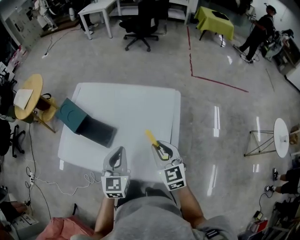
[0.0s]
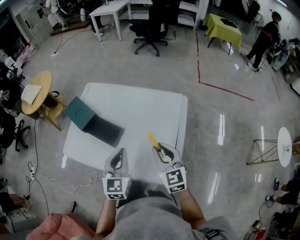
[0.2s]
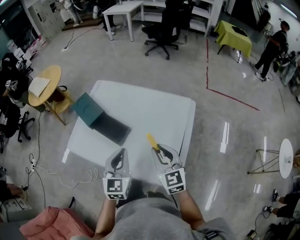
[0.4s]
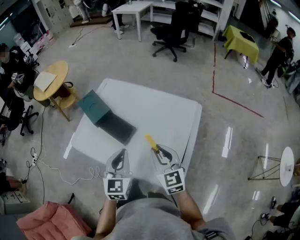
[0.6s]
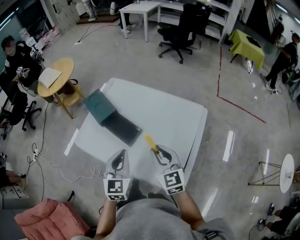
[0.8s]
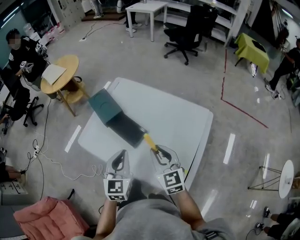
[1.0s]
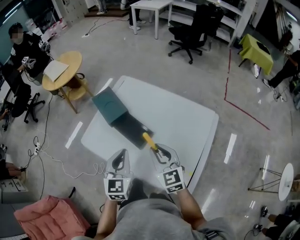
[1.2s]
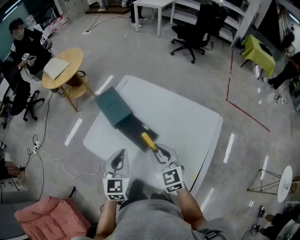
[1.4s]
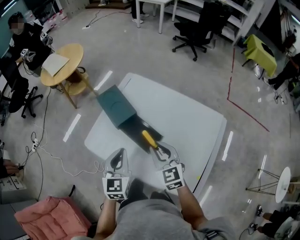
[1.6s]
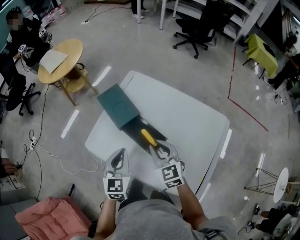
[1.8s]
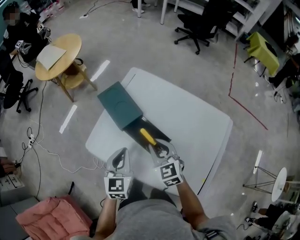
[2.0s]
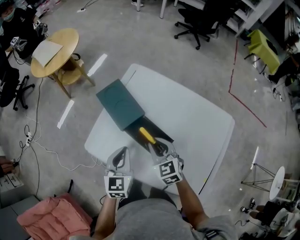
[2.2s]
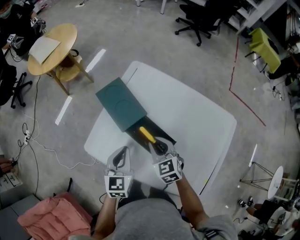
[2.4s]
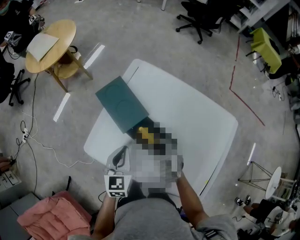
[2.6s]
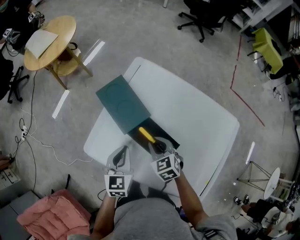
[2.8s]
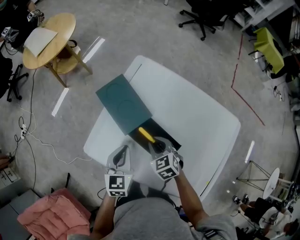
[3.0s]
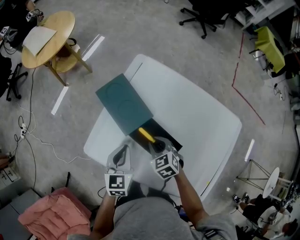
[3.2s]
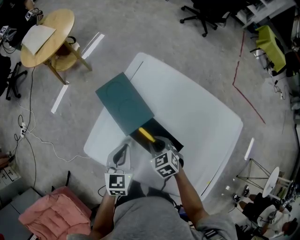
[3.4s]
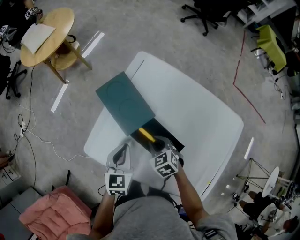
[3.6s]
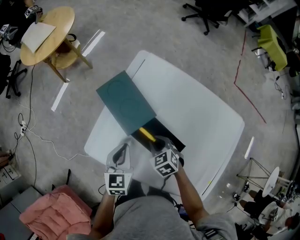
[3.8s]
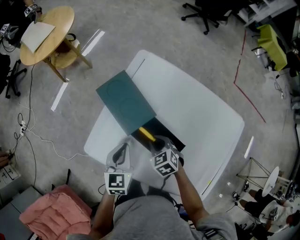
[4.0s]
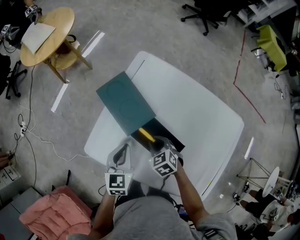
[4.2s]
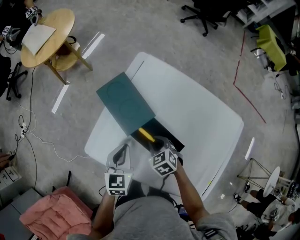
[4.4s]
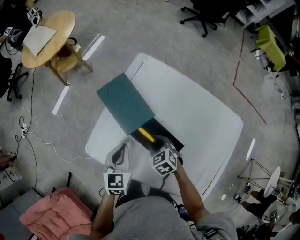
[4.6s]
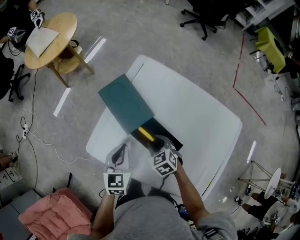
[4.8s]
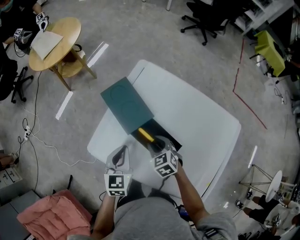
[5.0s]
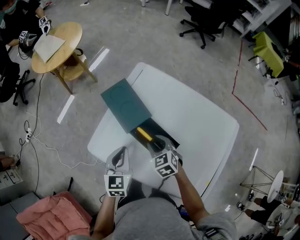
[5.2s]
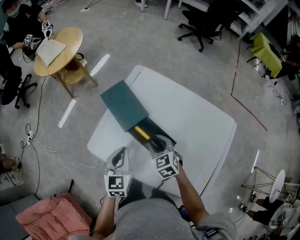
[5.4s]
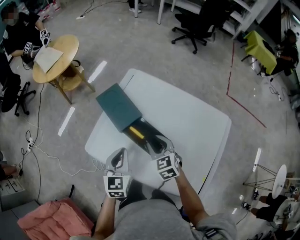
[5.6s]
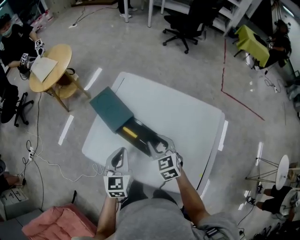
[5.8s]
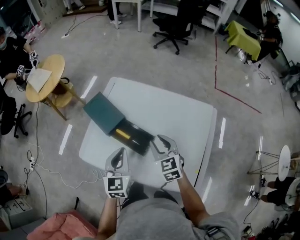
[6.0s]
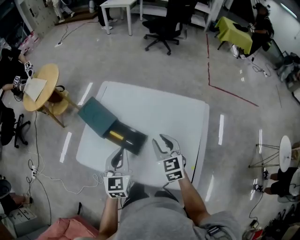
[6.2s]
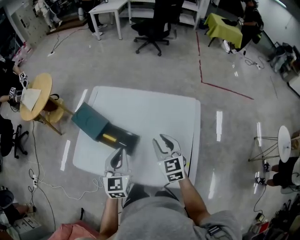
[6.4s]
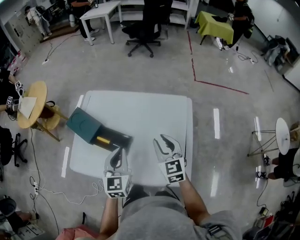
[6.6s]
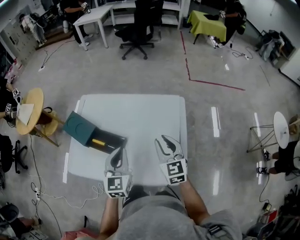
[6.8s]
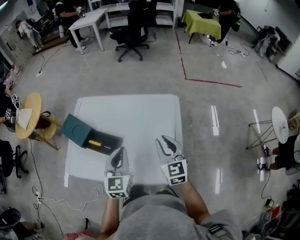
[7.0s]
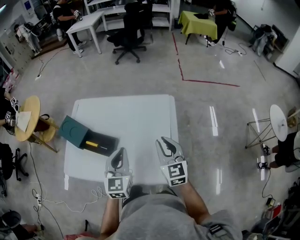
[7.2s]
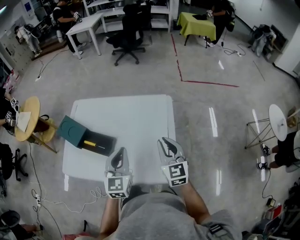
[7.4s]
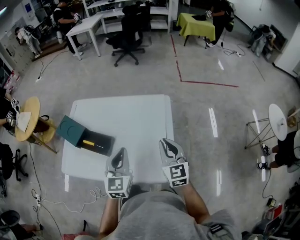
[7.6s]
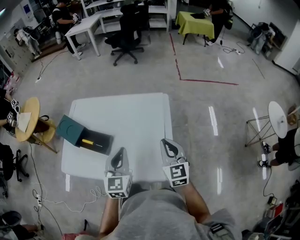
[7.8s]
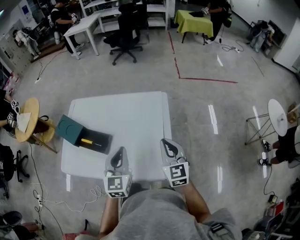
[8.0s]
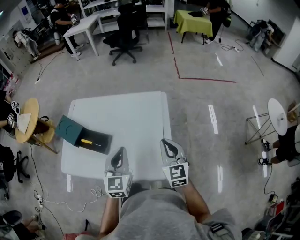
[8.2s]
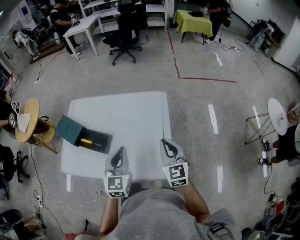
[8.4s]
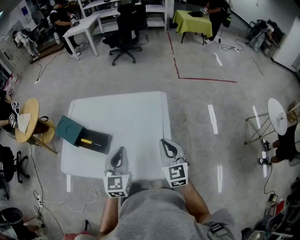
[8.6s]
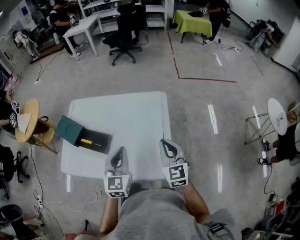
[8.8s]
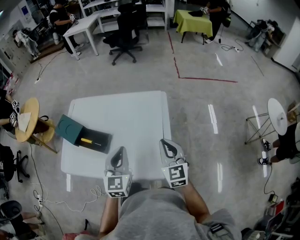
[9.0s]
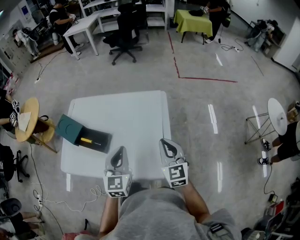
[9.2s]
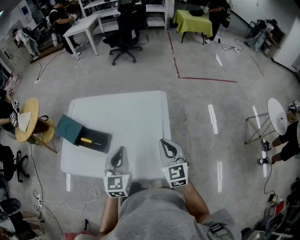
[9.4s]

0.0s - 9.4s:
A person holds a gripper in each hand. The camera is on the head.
0.0s - 1.6s: The right gripper shifts about 25 cm to the left and forward, and swivels approximately 20 degrees; the left gripper shifts some 25 cm to the left, and swivels roughly 20 degrees.
1.6s - 3.2s: The right gripper moves downward and forward, about 20 cm, and angles its fingers downward, by approximately 30 degrees, while the left gripper goes some 20 cm downward, forward and to the left.
3.2s - 4.8s: The grippers make only small movements.
4.8s - 6.2s: The right gripper shifts roughly 25 cm upward, to the right and backward, and changes its angle by roughly 40 degrees. The left gripper heads to the right, upward and backward, covering approximately 20 cm.
6.2s - 7.8s: The left gripper is displaced to the right by roughly 20 cm. Meanwhile the right gripper shifts about 25 cm to the right and backward, swivels roughly 20 degrees, and closes up.
7.8s - 9.4s: The grippers make only small movements.

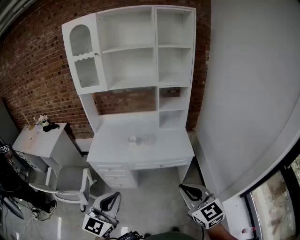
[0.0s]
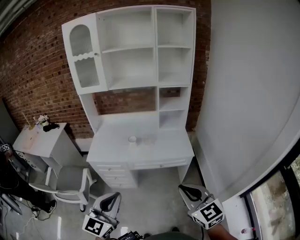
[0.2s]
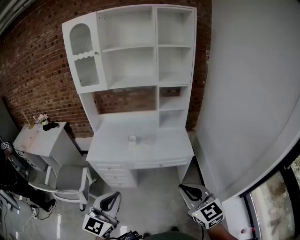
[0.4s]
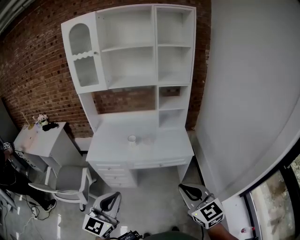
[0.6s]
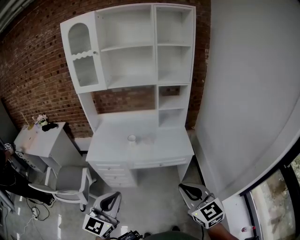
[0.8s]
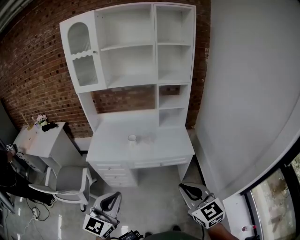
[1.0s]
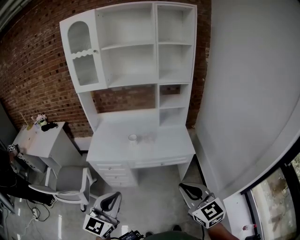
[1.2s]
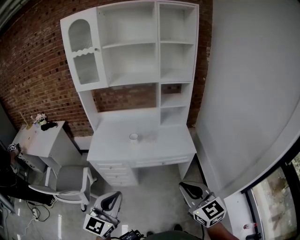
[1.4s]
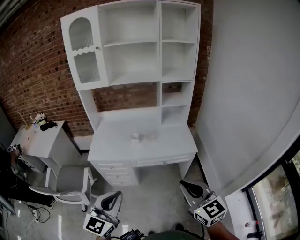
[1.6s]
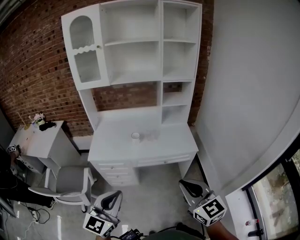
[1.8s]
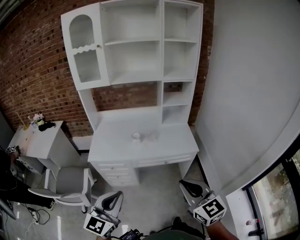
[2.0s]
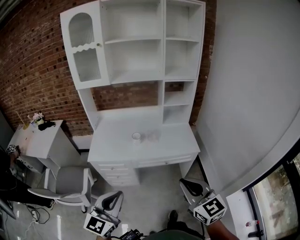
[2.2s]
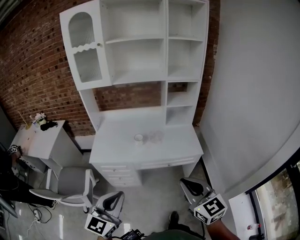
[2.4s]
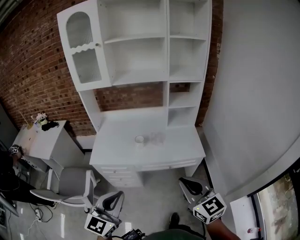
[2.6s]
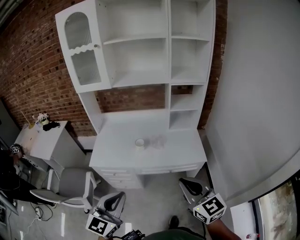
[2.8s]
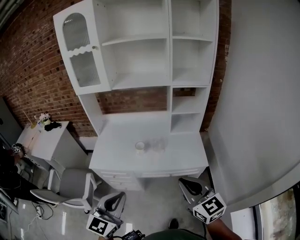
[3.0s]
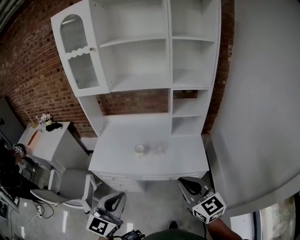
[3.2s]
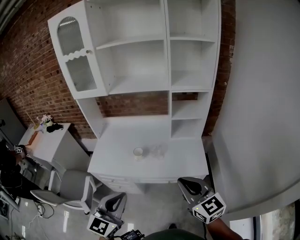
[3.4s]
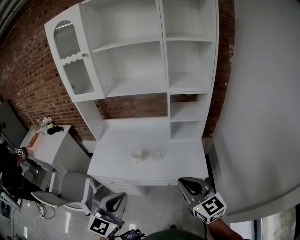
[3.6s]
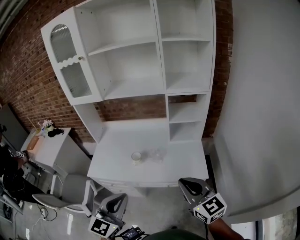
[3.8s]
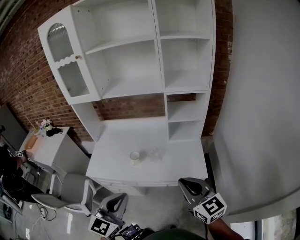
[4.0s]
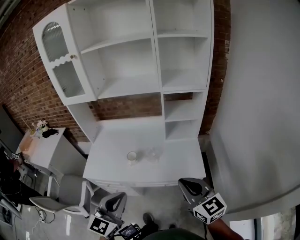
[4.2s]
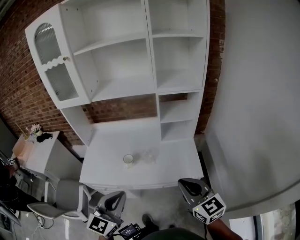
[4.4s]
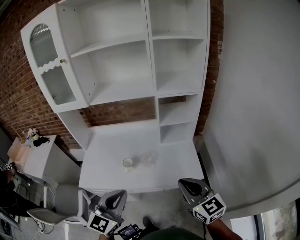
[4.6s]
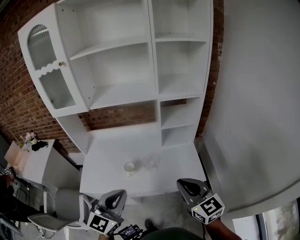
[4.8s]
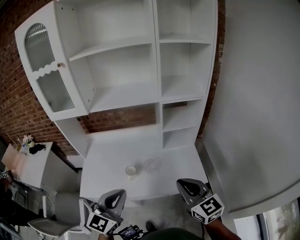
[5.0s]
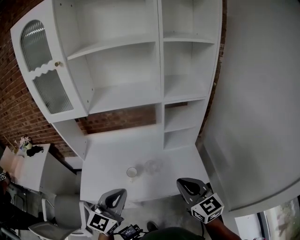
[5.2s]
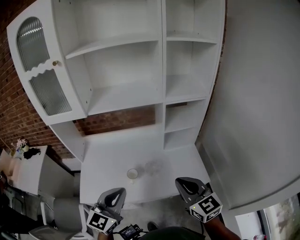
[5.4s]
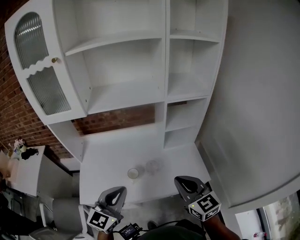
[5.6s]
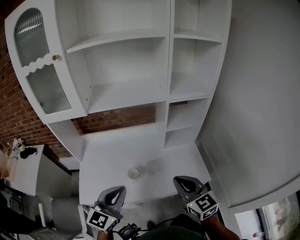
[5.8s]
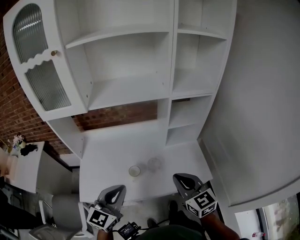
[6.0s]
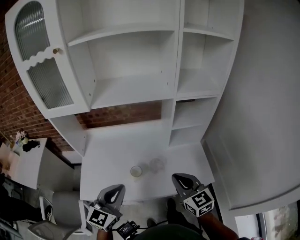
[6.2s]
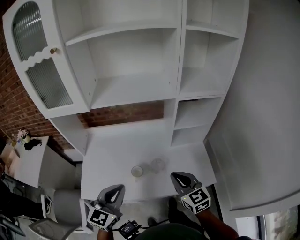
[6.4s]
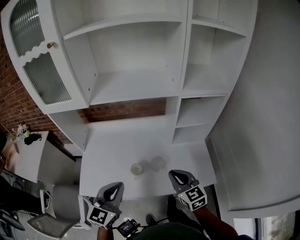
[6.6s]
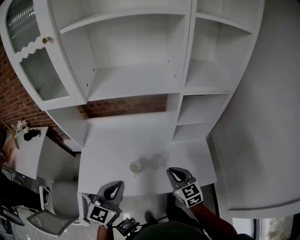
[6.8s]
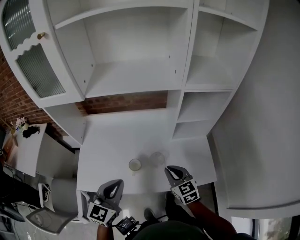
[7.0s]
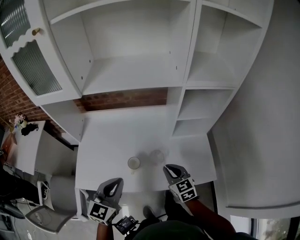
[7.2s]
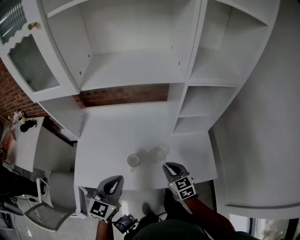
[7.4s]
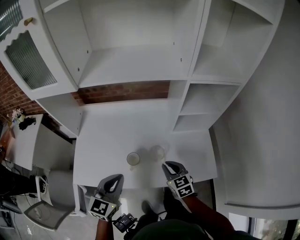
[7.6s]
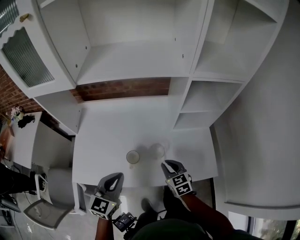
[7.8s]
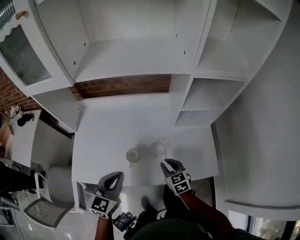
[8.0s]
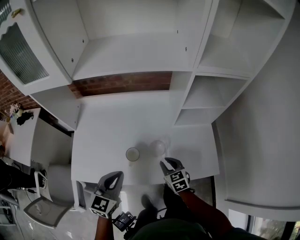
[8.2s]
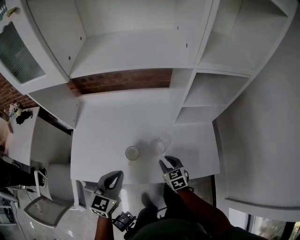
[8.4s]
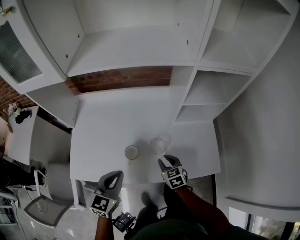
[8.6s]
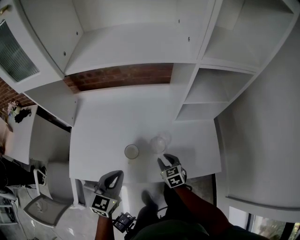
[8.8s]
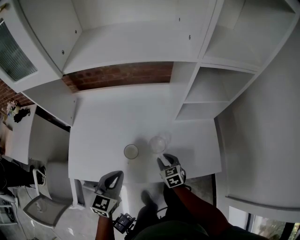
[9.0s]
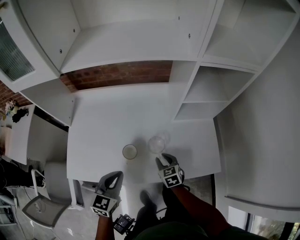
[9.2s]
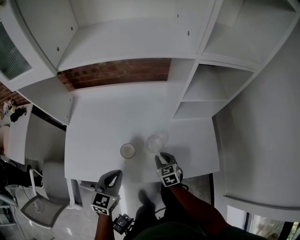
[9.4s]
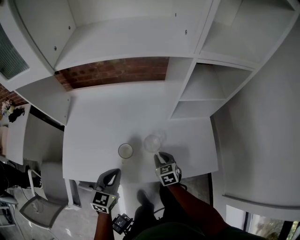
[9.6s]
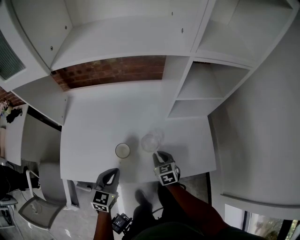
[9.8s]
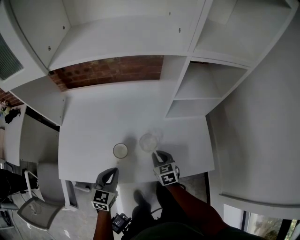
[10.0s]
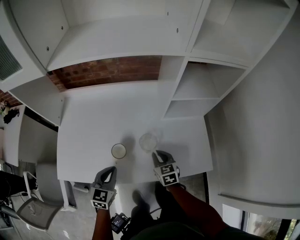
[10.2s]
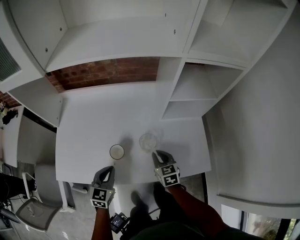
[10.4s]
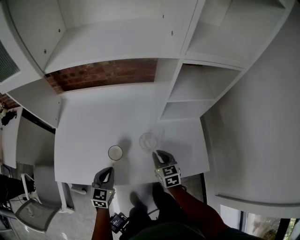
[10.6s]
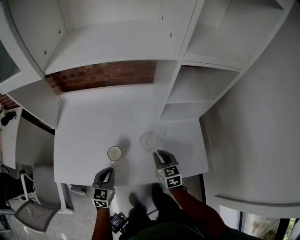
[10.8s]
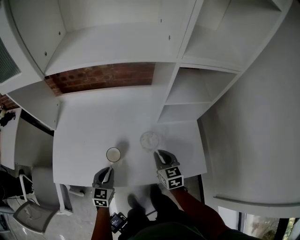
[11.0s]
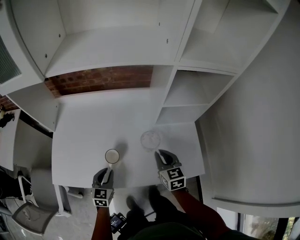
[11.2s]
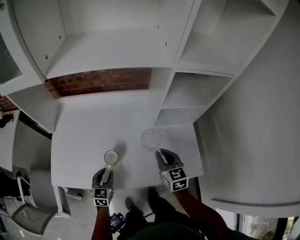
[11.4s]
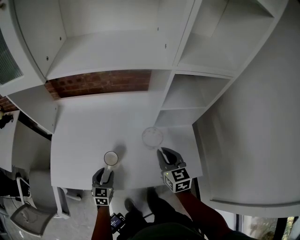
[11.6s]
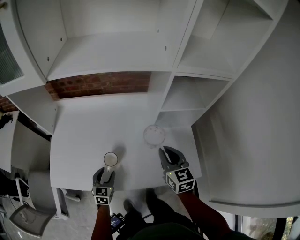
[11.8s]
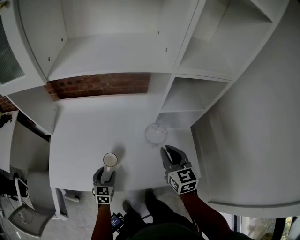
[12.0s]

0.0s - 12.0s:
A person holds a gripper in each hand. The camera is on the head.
0.0s - 1.6s: Both grippers travel together to the left, some 5 cm.
1.6s - 3.0s: The grippers both shift forward by approximately 15 cm.
3.0s - 4.4s: The two grippers go roughly 15 cm forward and to the right.
4.4s - 6.0s: The right gripper moves to the left and forward, roughly 20 cm, while the left gripper goes about 20 cm forward and to the left.
6.0s - 7.6s: The right gripper goes roughly 25 cm downward and forward. The left gripper heads downward and forward, covering about 15 cm.
7.6s - 9.0s: The left gripper moves downward, some 10 cm. The right gripper shifts about 15 cm downward.
9.0s - 10.4s: The right gripper moves some 5 cm, while the left gripper heads downward, covering approximately 10 cm.
10.4s - 12.0s: The right gripper goes roughly 20 cm upward; the left gripper goes approximately 5 cm downward, and opens.

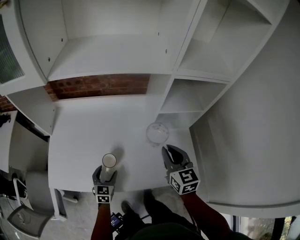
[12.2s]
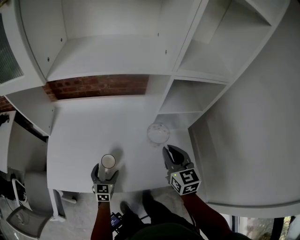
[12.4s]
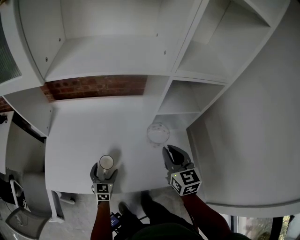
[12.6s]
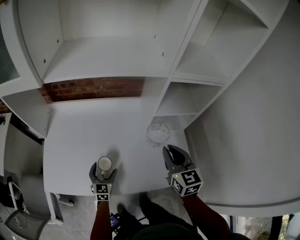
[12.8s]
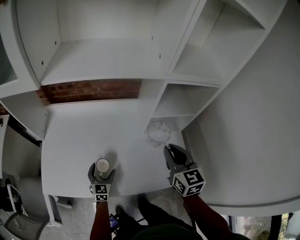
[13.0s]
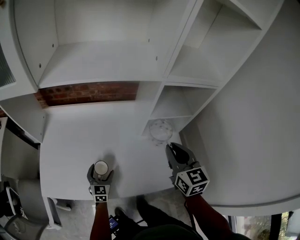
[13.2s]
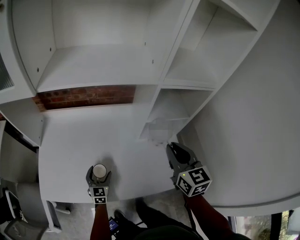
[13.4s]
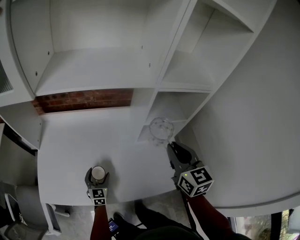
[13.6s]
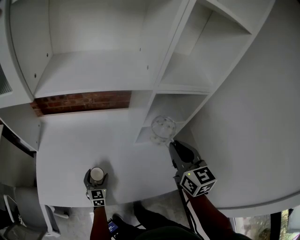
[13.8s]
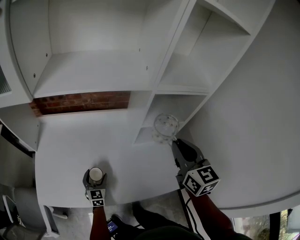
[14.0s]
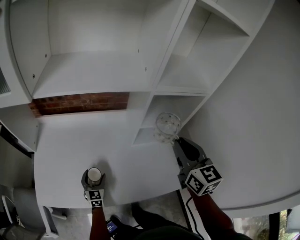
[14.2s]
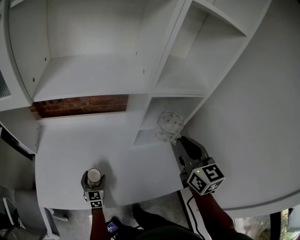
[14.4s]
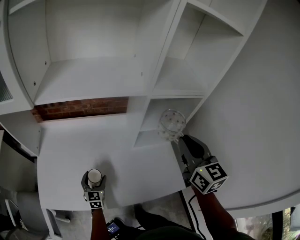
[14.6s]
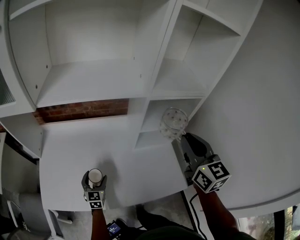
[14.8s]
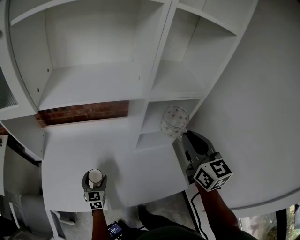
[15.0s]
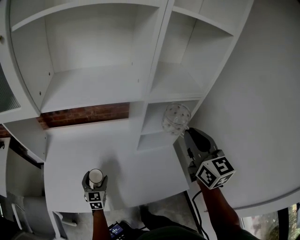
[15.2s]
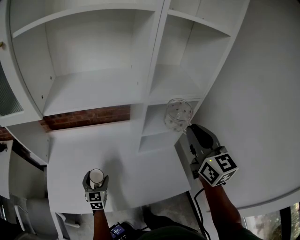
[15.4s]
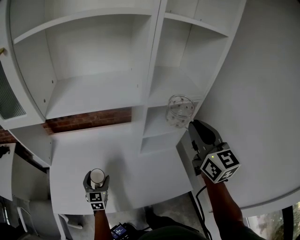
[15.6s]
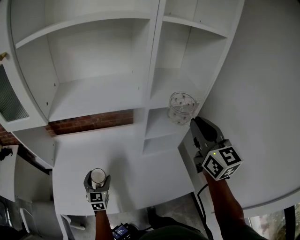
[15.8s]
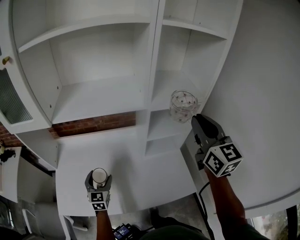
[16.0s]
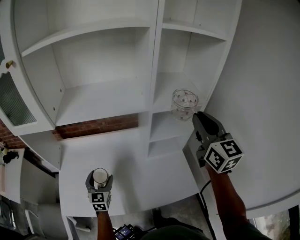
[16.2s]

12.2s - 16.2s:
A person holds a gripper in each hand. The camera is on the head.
12.2s - 13.6s: The left gripper is displaced forward by roughly 5 cm. The right gripper moves upward, roughly 10 cm.
13.6s - 14.8s: The right gripper moves upward, some 10 cm. The left gripper heads upward, covering about 5 cm.
14.8s - 16.2s: The grippers both shift upward by about 10 cm.
